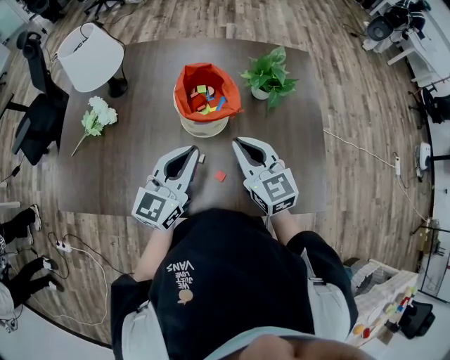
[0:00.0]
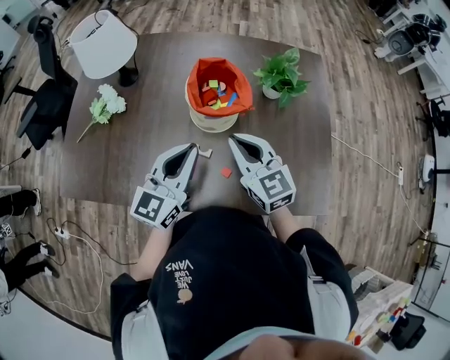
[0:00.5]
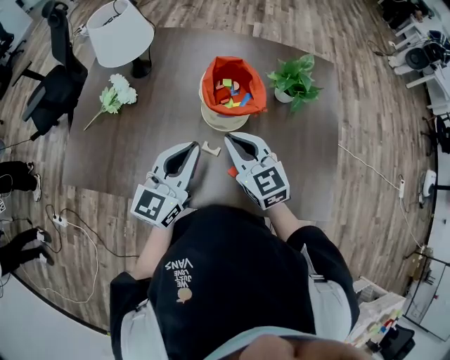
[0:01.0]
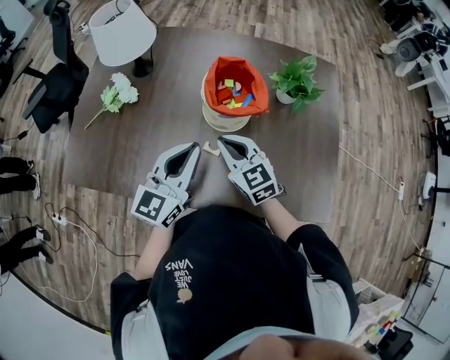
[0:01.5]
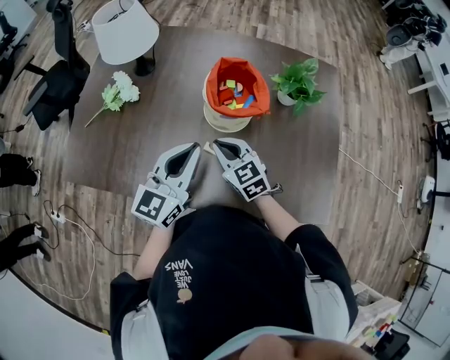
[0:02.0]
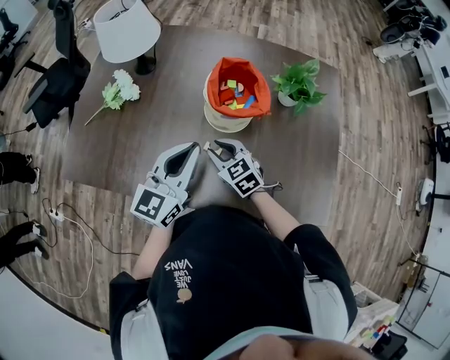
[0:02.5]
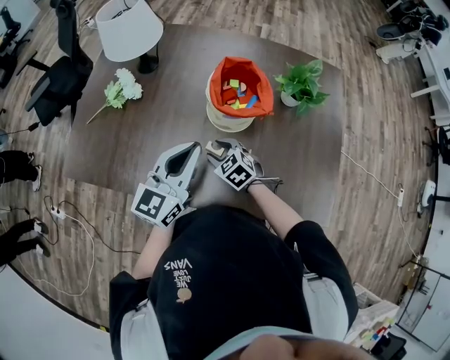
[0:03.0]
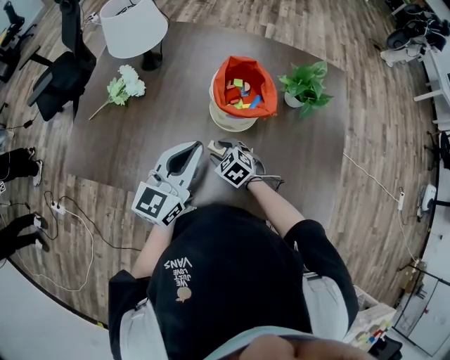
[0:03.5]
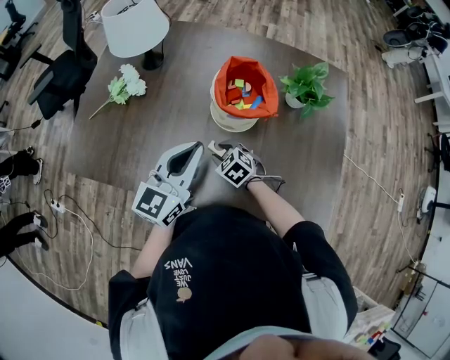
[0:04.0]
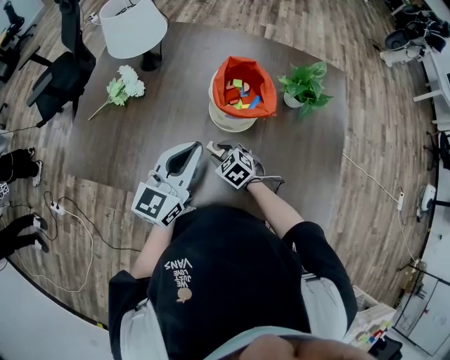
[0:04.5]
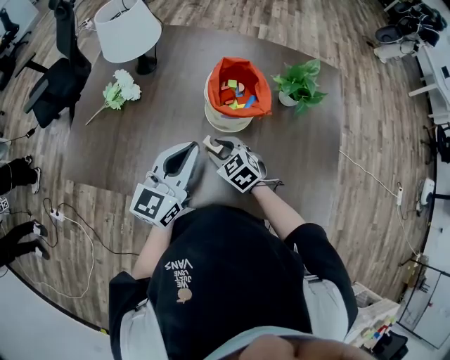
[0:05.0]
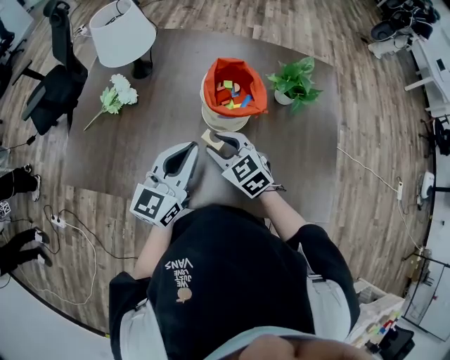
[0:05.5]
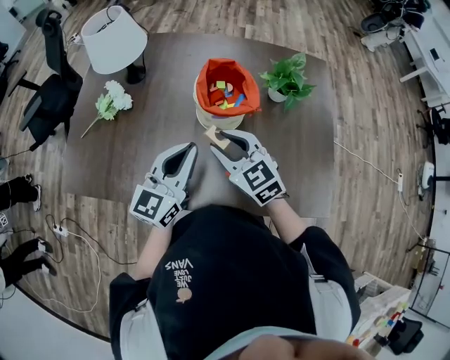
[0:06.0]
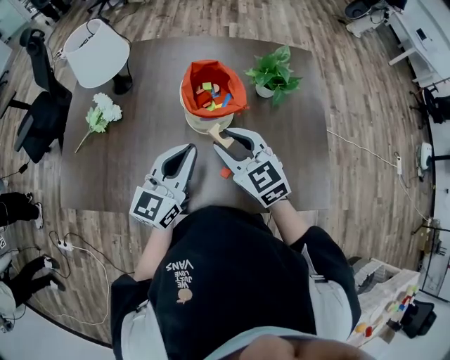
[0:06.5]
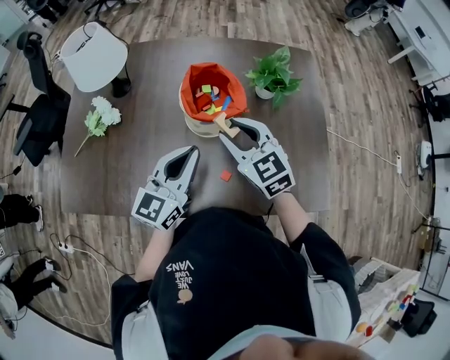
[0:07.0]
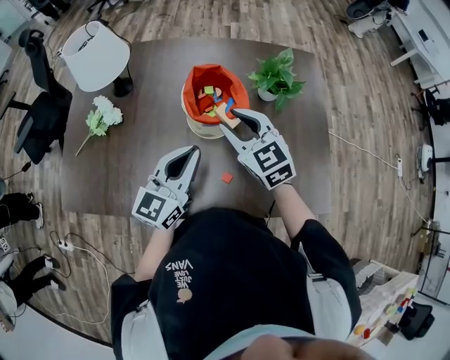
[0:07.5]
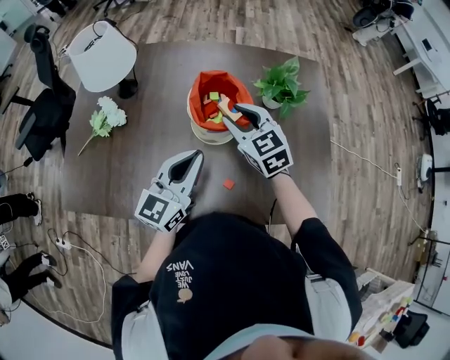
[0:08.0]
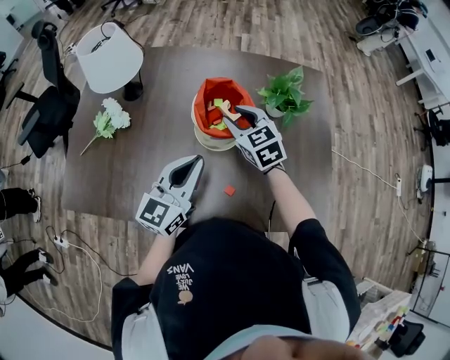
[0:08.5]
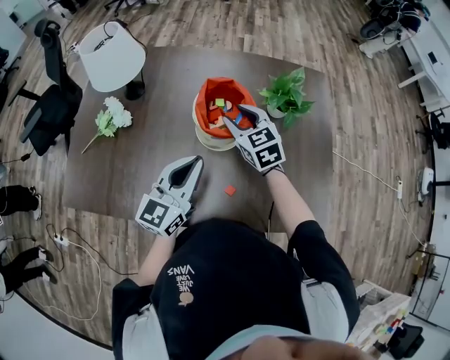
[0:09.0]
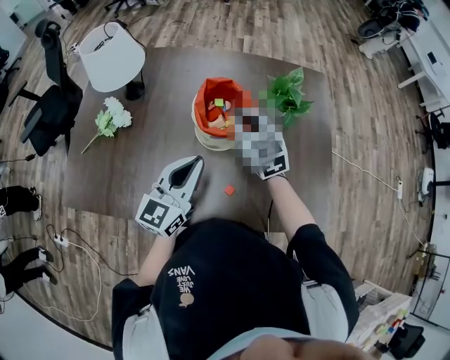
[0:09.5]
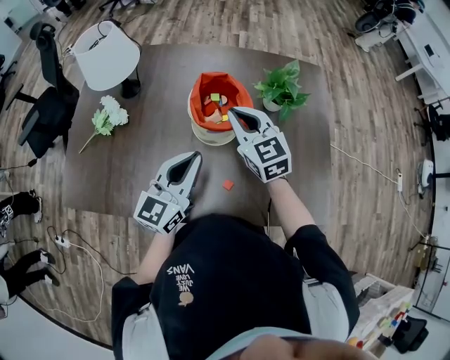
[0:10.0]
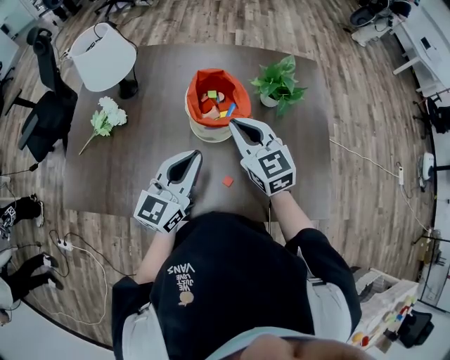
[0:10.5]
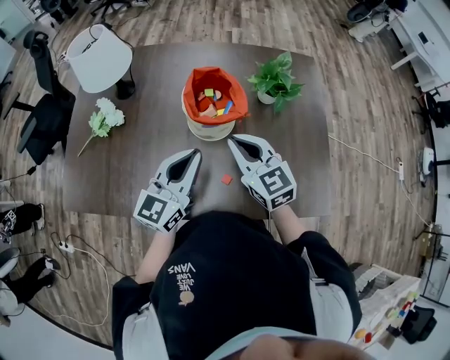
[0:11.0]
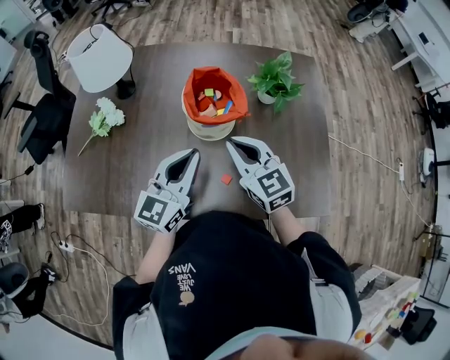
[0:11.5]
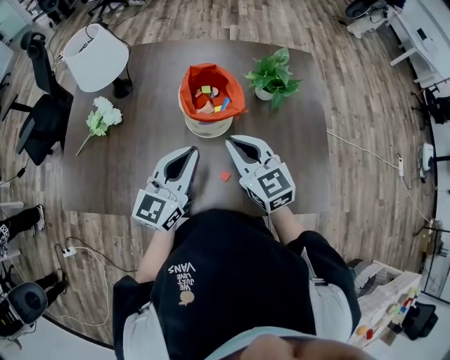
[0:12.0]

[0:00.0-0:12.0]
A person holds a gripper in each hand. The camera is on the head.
0:00.0 to 0:02.0: The right gripper goes approximately 15 cm to the left and downward, and turns by approximately 20 degrees, while the left gripper travels to the left by about 5 cm.
0:02.0 to 0:04.0: The right gripper goes roughly 15 cm downward, rotates roughly 30 degrees, and opens up.
0:04.0 to 0:06.0: The right gripper heads upward, covering approximately 20 cm, and angles its fingers upward, by about 30 degrees.
0:06.0 to 0:08.0: The right gripper is displaced forward and to the right by some 10 cm.
0:08.0 to 0:10.0: The right gripper closes its fingers.
0:10.0 to 0:12.0: The right gripper travels backward by some 10 cm.

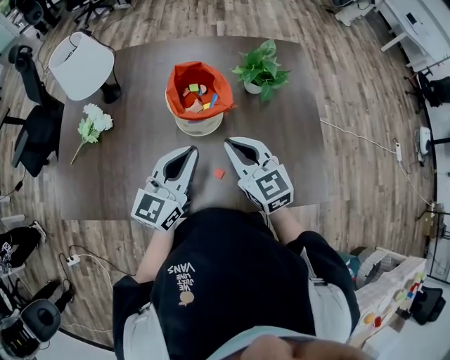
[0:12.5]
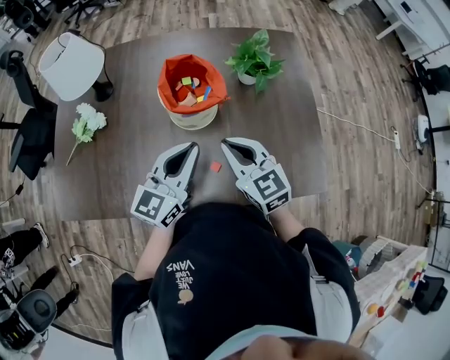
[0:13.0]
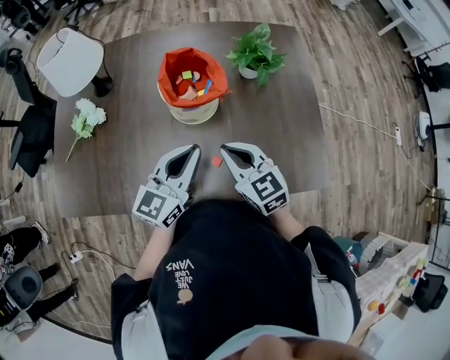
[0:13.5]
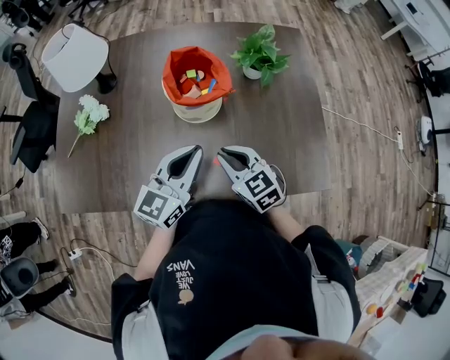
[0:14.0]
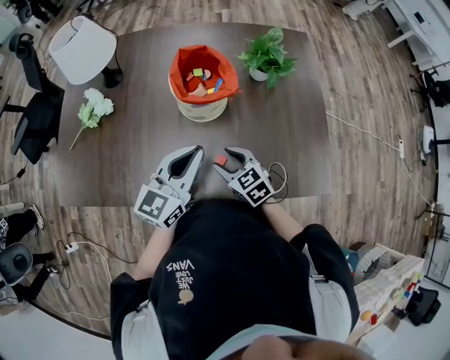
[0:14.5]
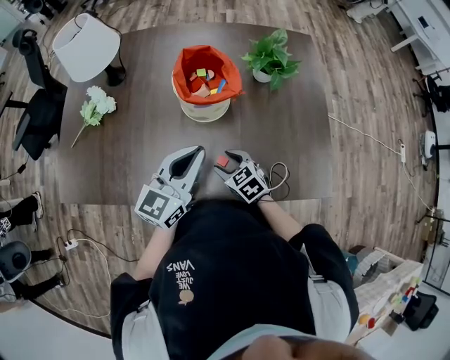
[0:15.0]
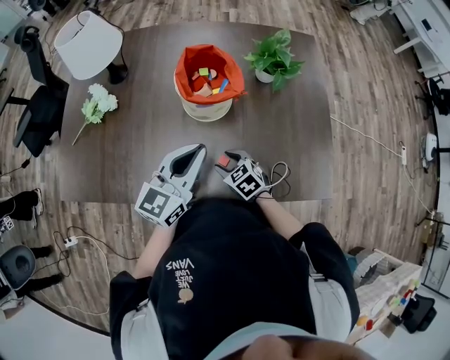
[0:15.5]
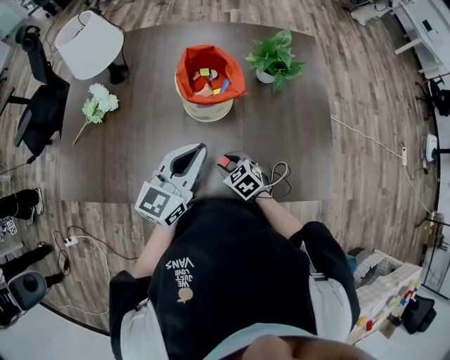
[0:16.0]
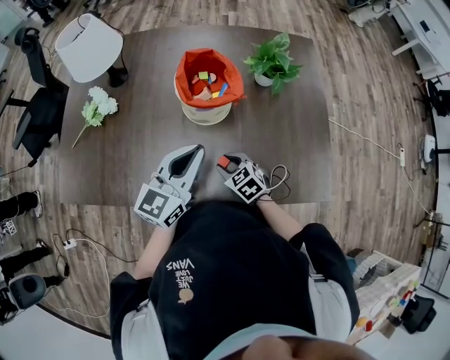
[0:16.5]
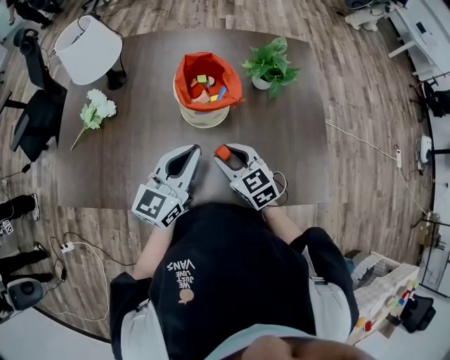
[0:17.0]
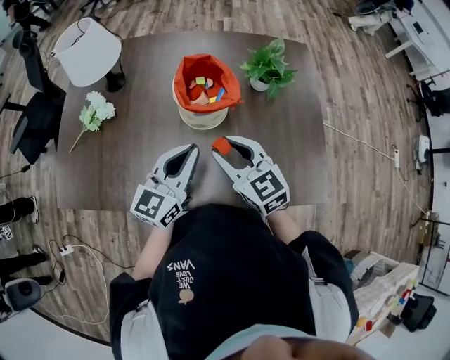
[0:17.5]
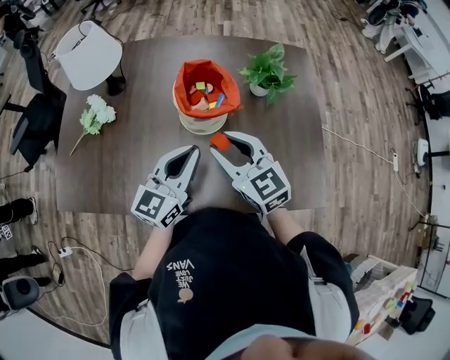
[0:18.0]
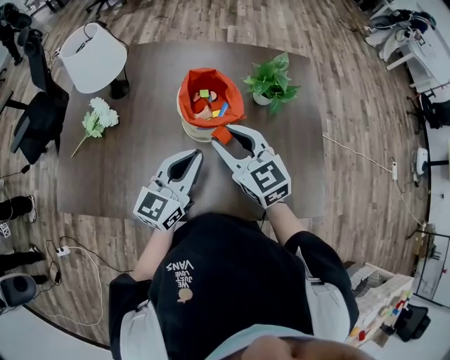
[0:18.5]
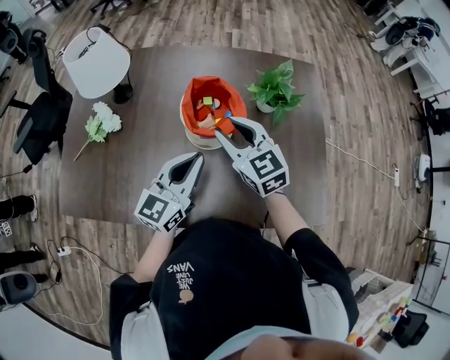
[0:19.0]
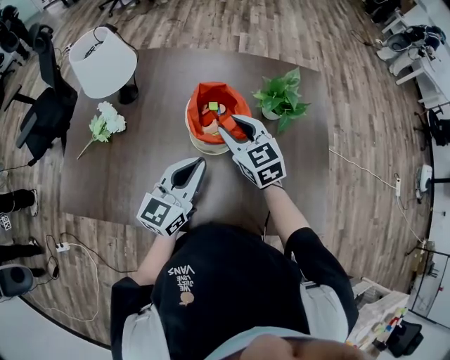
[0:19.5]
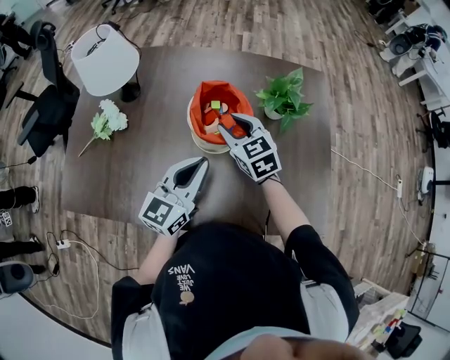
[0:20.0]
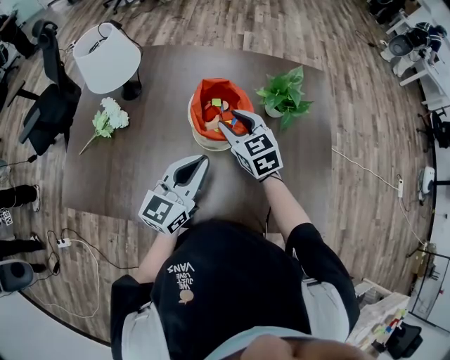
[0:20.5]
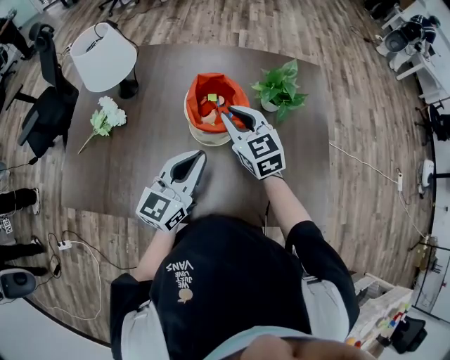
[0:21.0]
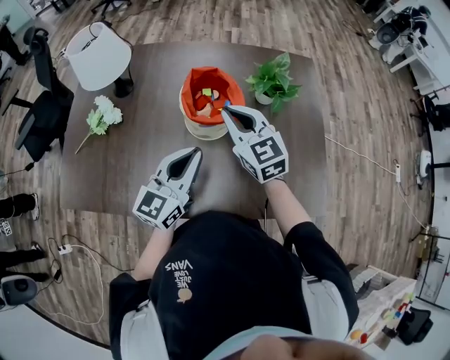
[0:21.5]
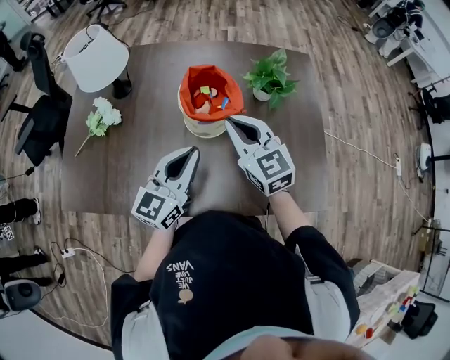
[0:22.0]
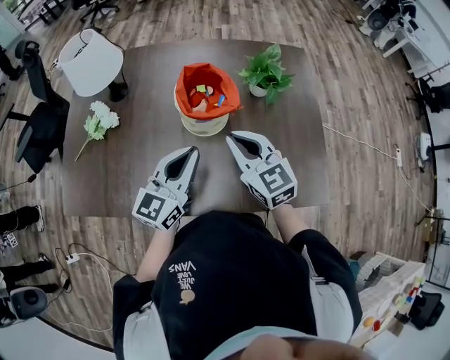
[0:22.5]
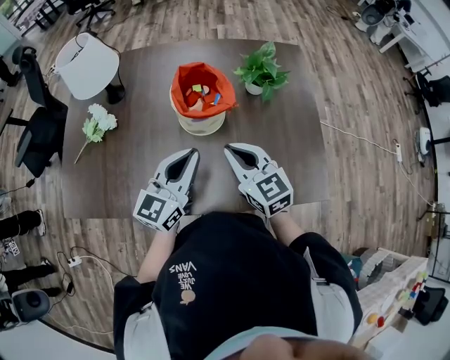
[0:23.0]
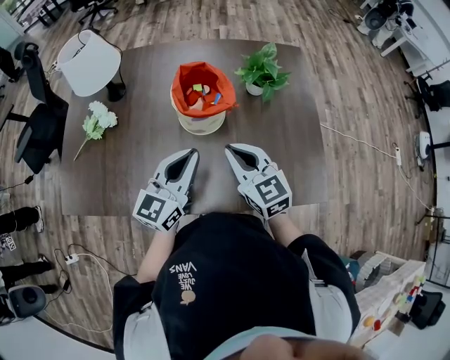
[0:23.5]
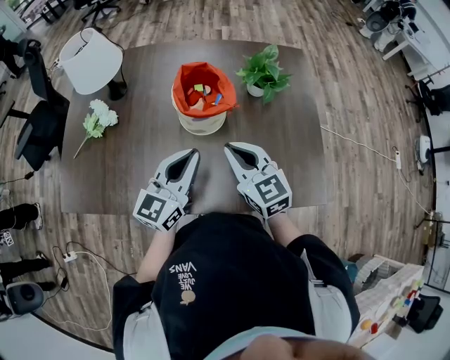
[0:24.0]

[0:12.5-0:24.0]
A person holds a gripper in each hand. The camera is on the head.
0:12.5 to 0:14.5: The right gripper goes some 15 cm downward, swivels approximately 20 degrees, and opens up.
0:14.5 to 0:16.5: The right gripper heads downward, covering about 5 cm.
0:16.5 to 0:18.5: The right gripper is displaced upward and forward by approximately 25 cm, and tilts its fingers about 30 degrees upward.
0:18.5 to 0:20.0: The right gripper shifts roughly 10 cm forward and downward.
0:20.0 to 0:22.0: The right gripper goes about 10 cm backward and upward, and closes.
0:22.0 to 0:24.0: The right gripper shifts roughly 5 cm backward.

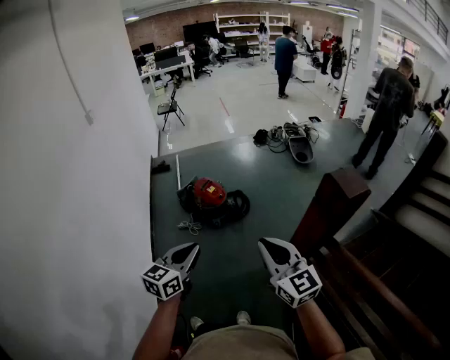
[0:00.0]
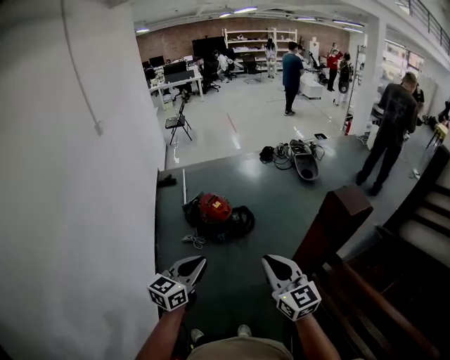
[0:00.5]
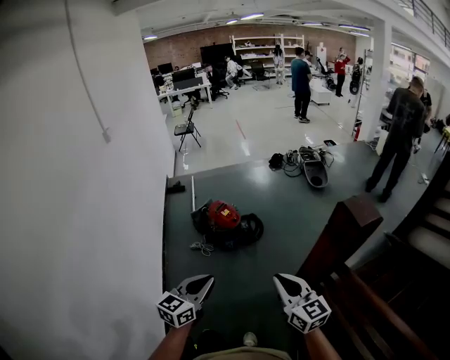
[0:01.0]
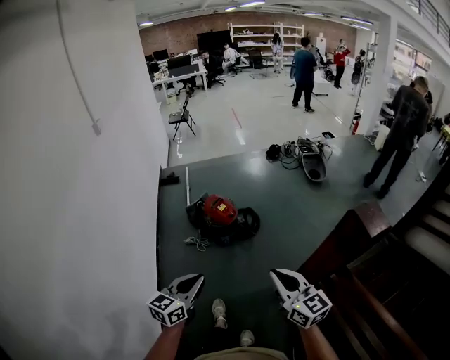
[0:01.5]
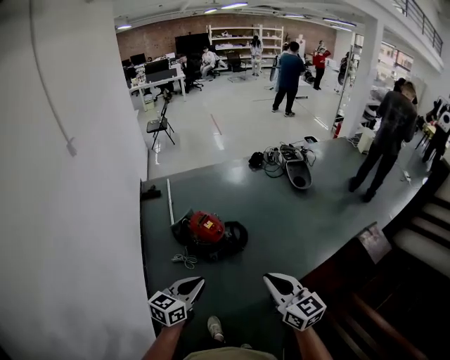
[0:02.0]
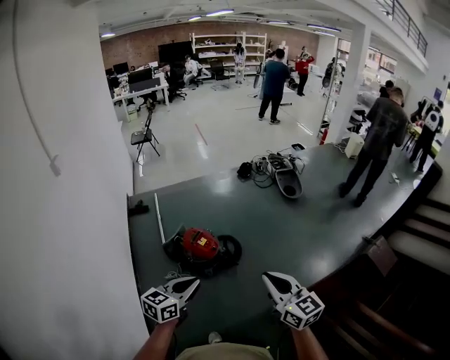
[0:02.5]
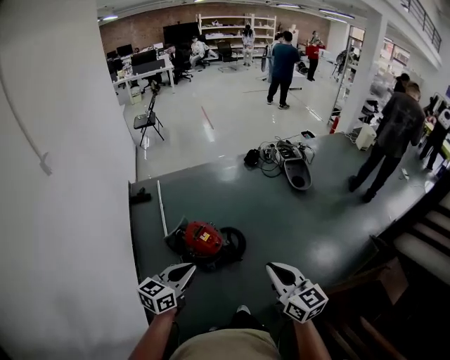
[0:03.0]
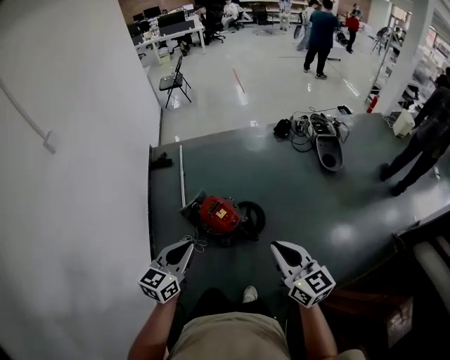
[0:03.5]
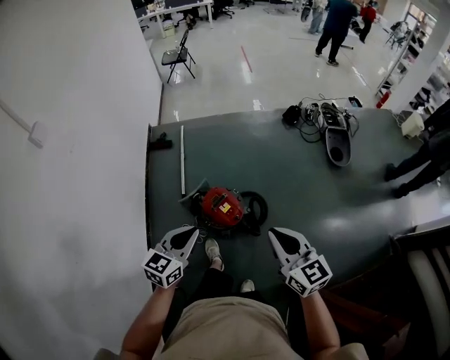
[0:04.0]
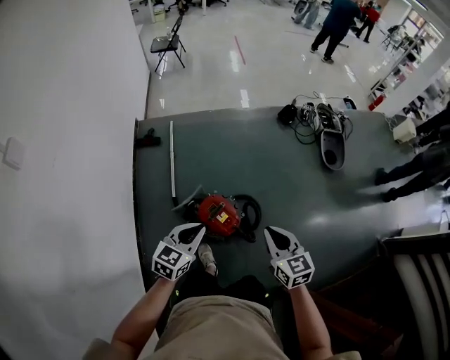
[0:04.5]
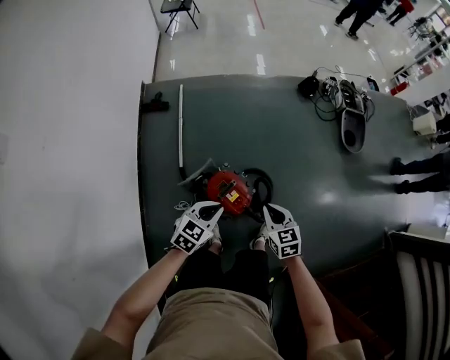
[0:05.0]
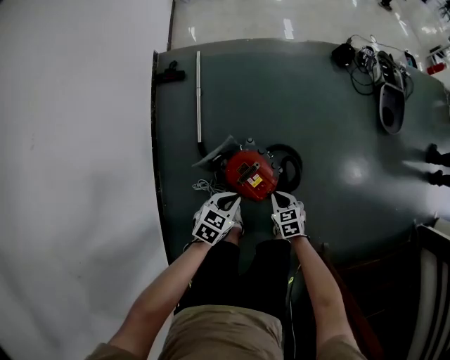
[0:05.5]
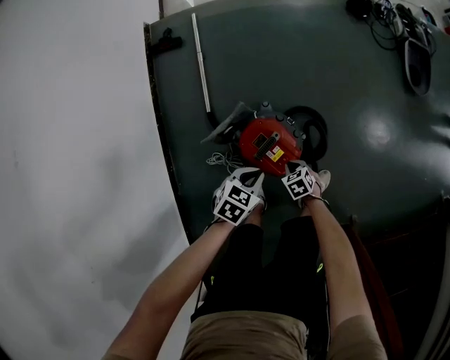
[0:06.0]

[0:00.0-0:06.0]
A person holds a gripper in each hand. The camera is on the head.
0:00.0 to 0:02.0: The grippers both shift forward by some 20 cm.
0:02.0 to 0:04.0: The two grippers travel together, forward, approximately 50 cm.
0:04.0 to 0:06.0: The left gripper is displaced downward and forward by about 50 cm, and tips its fingers downward by about 30 degrees. Meanwhile the right gripper moves downward, roughly 70 cm, and angles its fingers downward, by roughly 60 degrees.
